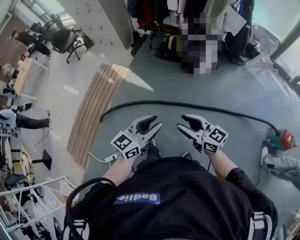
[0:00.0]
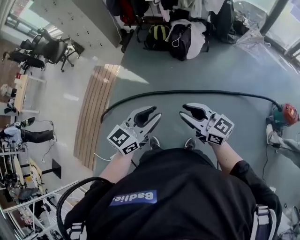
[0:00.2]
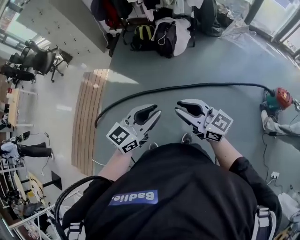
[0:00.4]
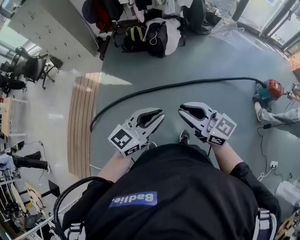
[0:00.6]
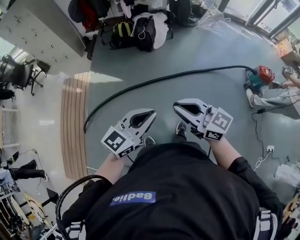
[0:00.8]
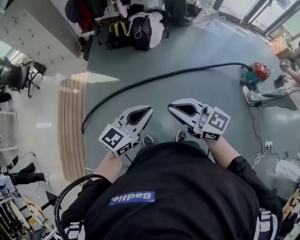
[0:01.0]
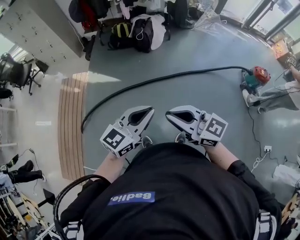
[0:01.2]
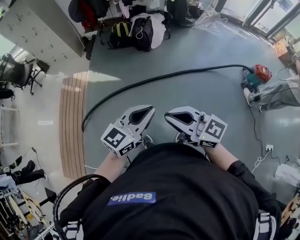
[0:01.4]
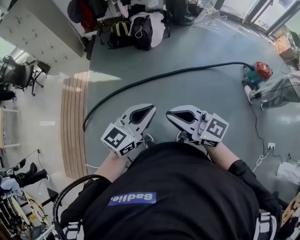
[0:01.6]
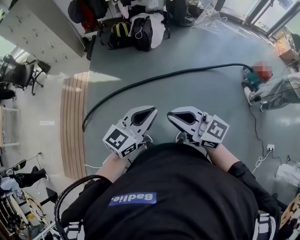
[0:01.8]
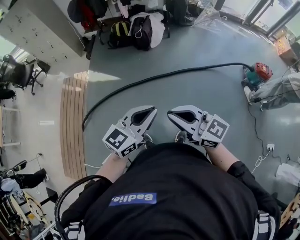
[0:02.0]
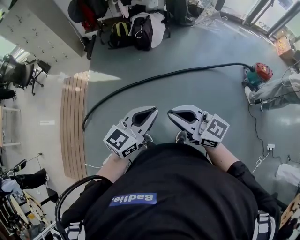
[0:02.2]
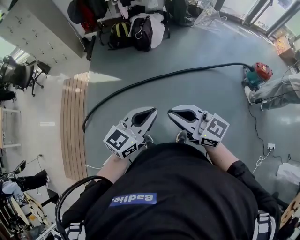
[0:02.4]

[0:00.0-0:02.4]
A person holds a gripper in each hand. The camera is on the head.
0.0 to 1.2 s: Both grippers move backward, roughly 20 cm. The right gripper closes. The left gripper rotates some 20 degrees, and closes.
1.2 to 2.4 s: The grippers make only small movements.

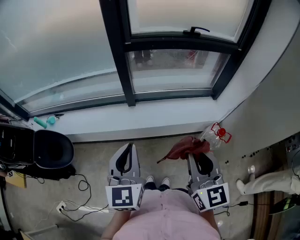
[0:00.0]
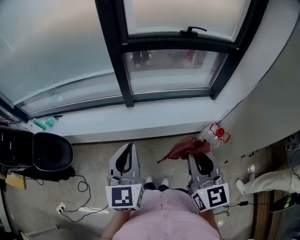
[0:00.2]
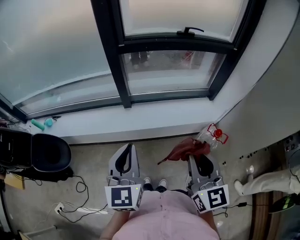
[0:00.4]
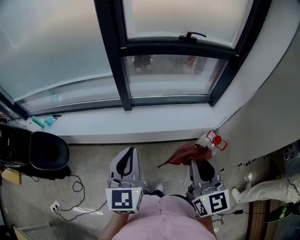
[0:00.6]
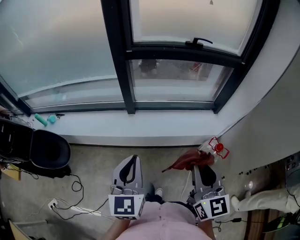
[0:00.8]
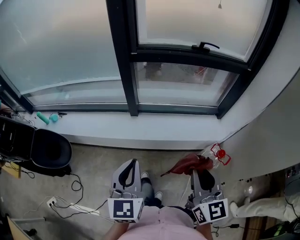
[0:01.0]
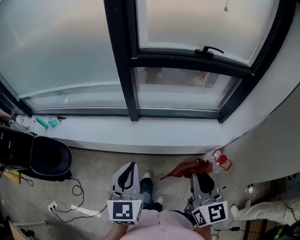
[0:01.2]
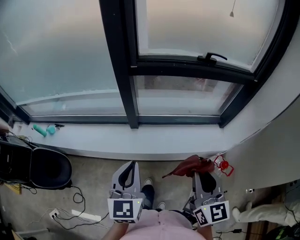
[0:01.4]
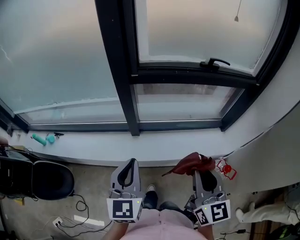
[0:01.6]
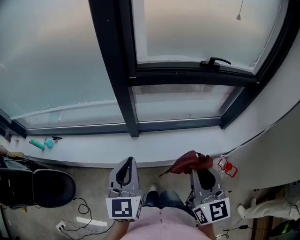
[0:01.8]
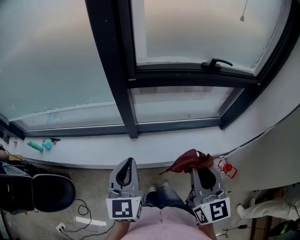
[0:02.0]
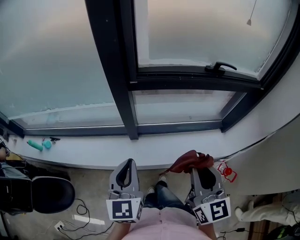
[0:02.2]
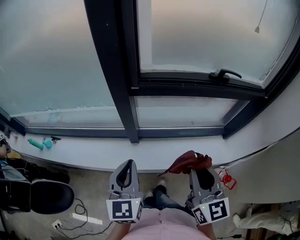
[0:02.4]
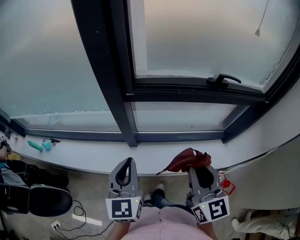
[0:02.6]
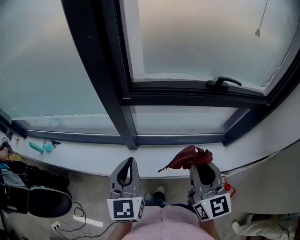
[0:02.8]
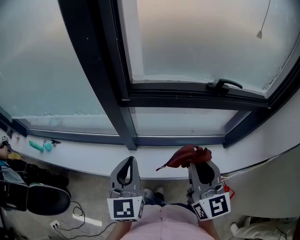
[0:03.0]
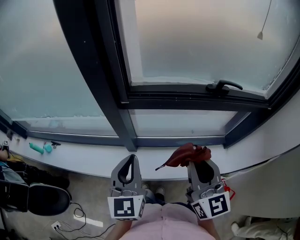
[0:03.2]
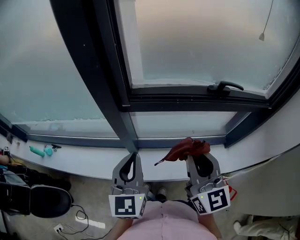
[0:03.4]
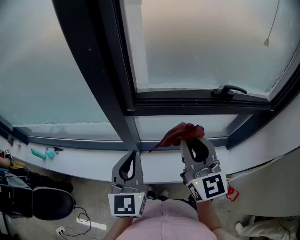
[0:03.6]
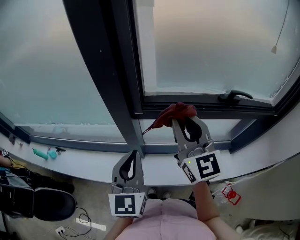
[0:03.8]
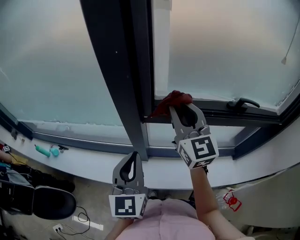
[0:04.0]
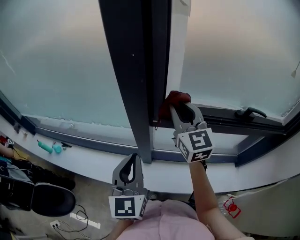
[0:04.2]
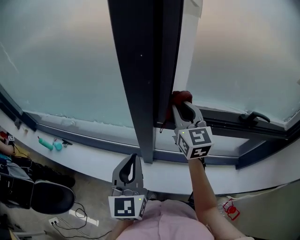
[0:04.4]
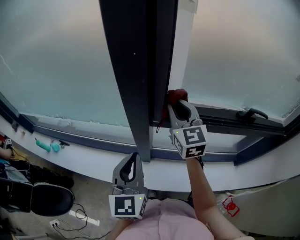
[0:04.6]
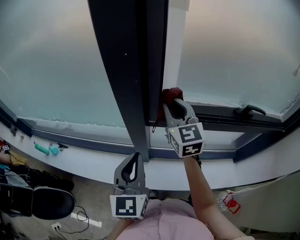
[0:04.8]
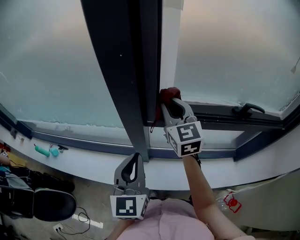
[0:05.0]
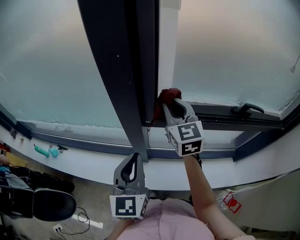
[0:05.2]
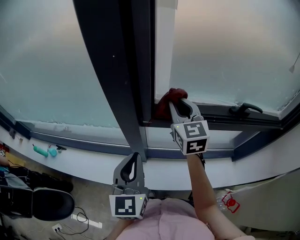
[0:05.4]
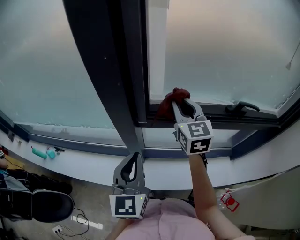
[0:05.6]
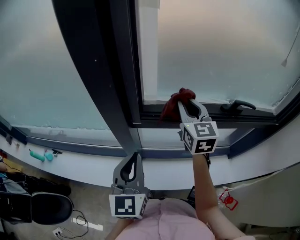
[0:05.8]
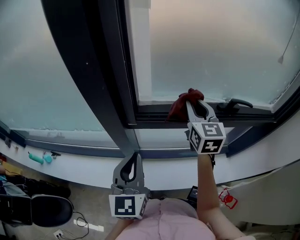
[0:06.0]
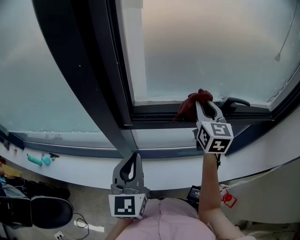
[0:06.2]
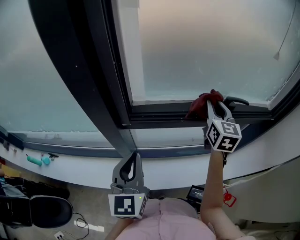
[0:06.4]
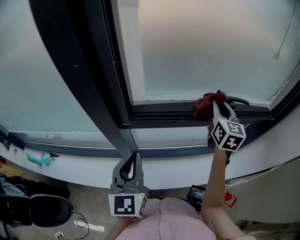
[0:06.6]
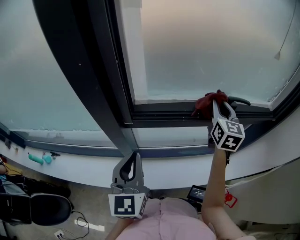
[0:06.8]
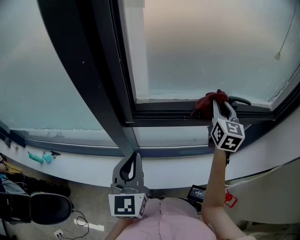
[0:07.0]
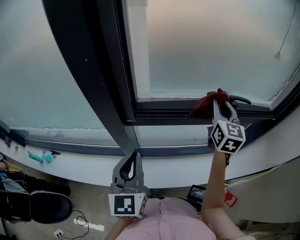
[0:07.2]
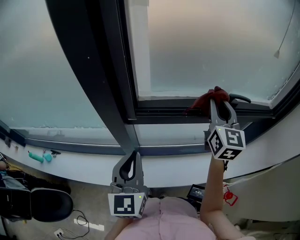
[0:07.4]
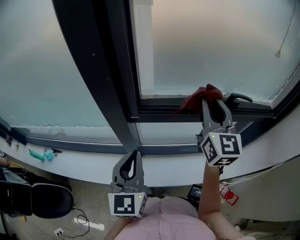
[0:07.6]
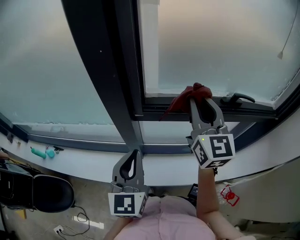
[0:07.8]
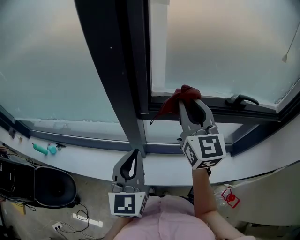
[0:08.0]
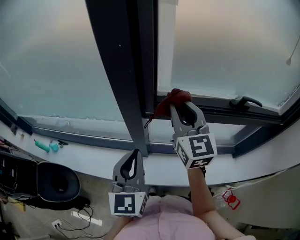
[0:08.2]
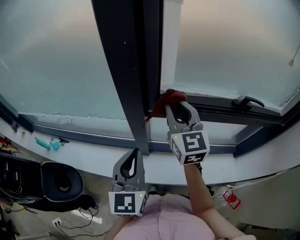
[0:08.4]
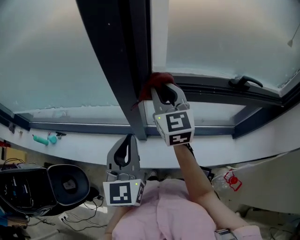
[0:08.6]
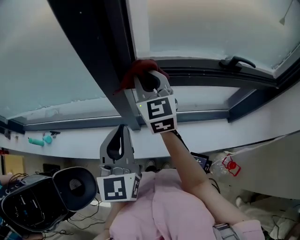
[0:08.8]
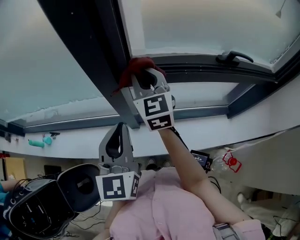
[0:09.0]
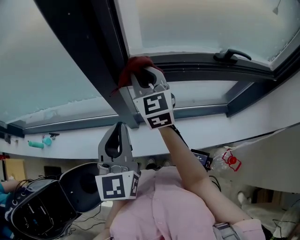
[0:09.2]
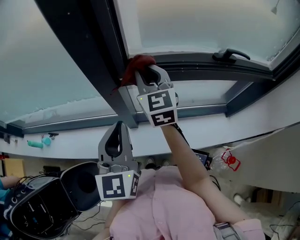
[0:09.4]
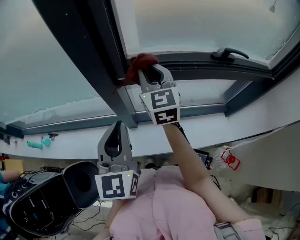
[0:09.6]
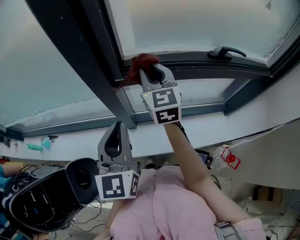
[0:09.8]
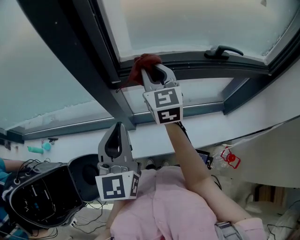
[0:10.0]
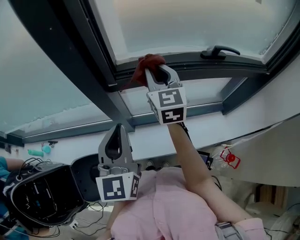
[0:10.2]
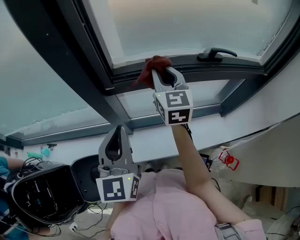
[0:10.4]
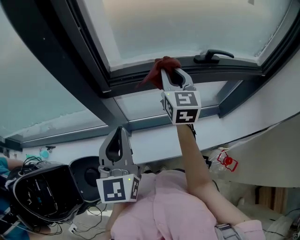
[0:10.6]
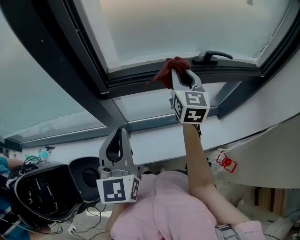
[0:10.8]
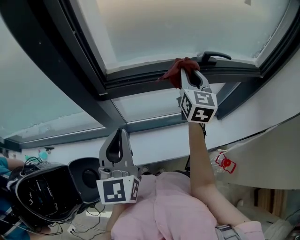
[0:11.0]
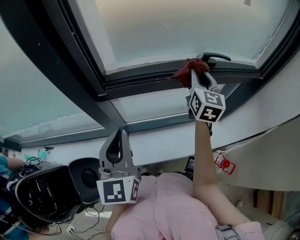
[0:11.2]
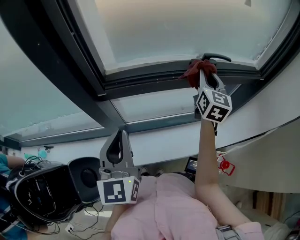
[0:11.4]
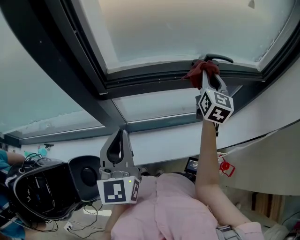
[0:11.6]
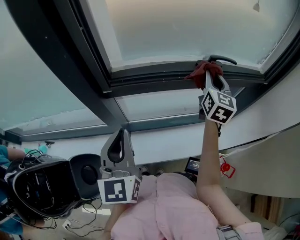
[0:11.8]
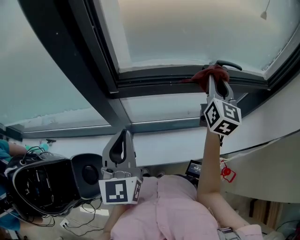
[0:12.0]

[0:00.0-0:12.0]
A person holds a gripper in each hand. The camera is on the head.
0.0 to 1.6 s: Both grippers move forward, about 20 cm.
1.6 to 3.0 s: The grippers both shift forward by about 20 cm.
3.0 to 4.4 s: The left gripper travels forward and to the left by about 15 cm, while the right gripper heads forward and to the left, covering approximately 35 cm.
4.4 to 6.0 s: The left gripper is displaced to the right by approximately 10 cm; the right gripper heads to the right, covering roughly 15 cm.
6.0 to 7.6 s: The right gripper goes some 10 cm backward and upward, and goes to the right and returns, some 15 cm each way.
7.6 to 9.0 s: The right gripper goes about 20 cm to the left and downward.
9.0 to 10.4 s: The right gripper travels to the right by some 15 cm.
10.4 to 12.0 s: The right gripper shifts approximately 20 cm to the right.

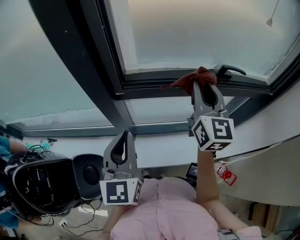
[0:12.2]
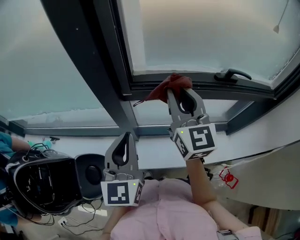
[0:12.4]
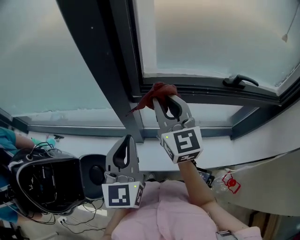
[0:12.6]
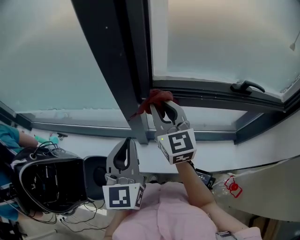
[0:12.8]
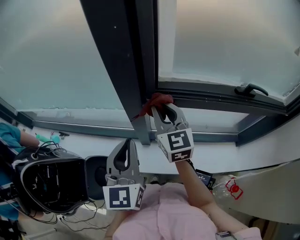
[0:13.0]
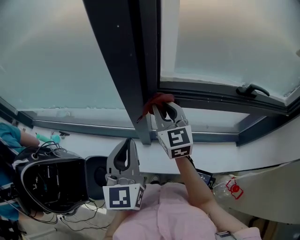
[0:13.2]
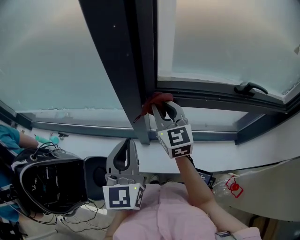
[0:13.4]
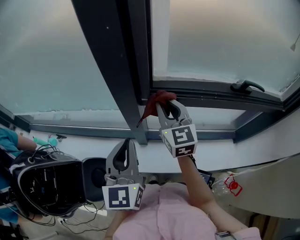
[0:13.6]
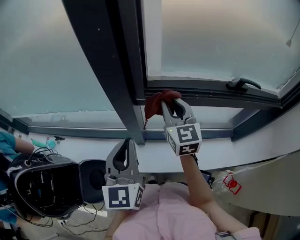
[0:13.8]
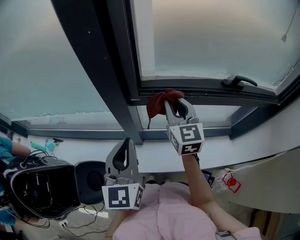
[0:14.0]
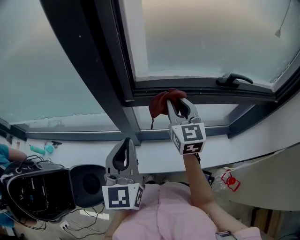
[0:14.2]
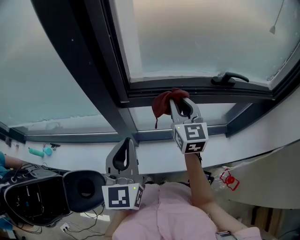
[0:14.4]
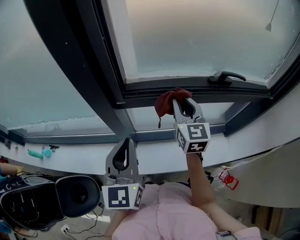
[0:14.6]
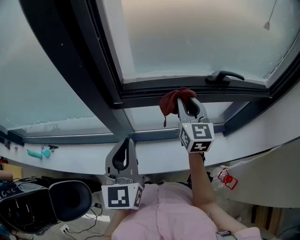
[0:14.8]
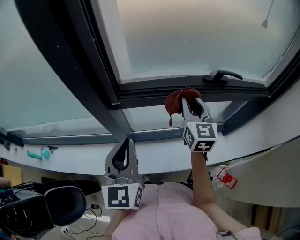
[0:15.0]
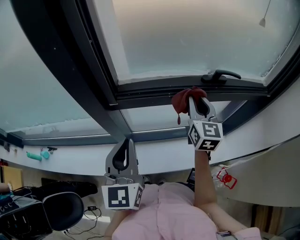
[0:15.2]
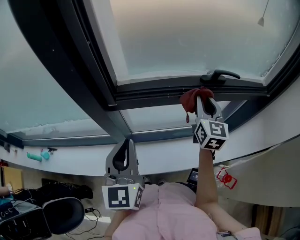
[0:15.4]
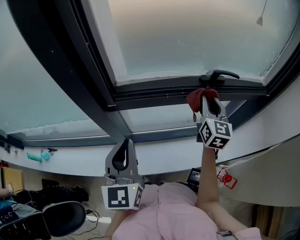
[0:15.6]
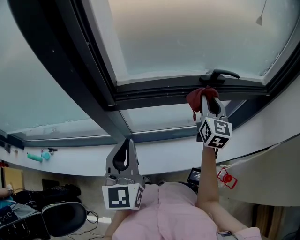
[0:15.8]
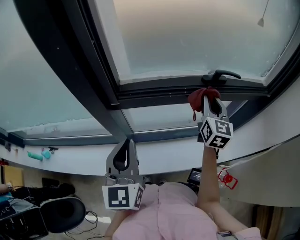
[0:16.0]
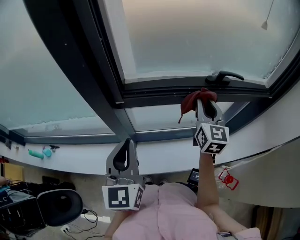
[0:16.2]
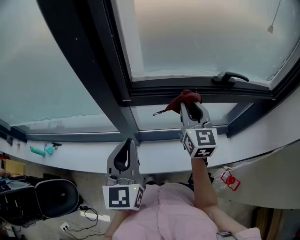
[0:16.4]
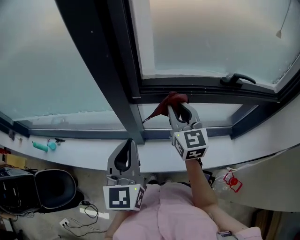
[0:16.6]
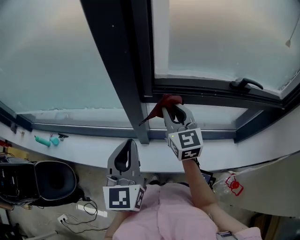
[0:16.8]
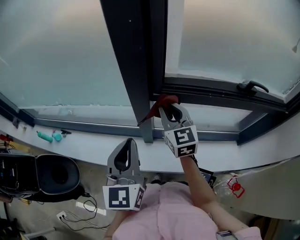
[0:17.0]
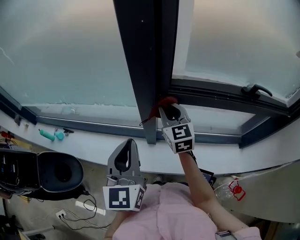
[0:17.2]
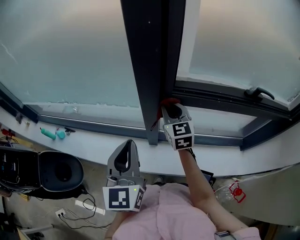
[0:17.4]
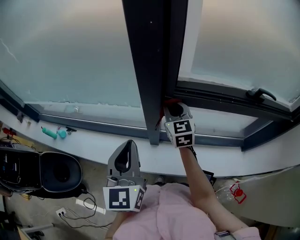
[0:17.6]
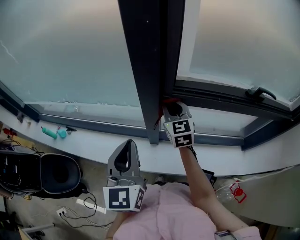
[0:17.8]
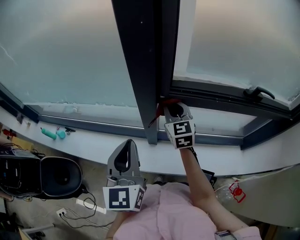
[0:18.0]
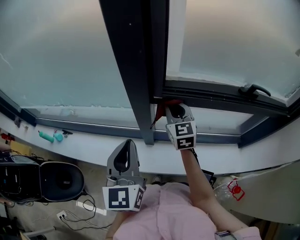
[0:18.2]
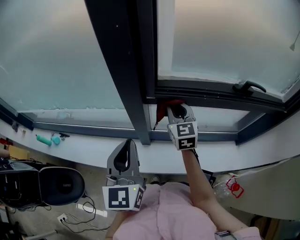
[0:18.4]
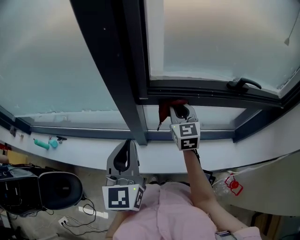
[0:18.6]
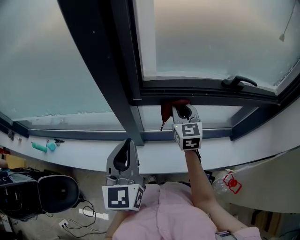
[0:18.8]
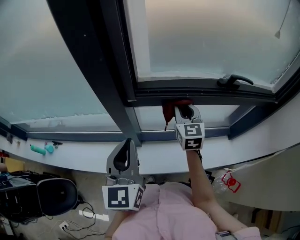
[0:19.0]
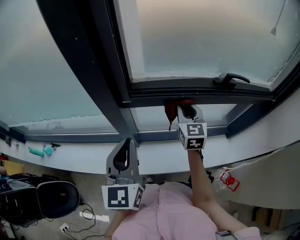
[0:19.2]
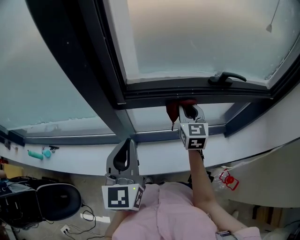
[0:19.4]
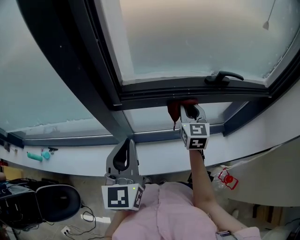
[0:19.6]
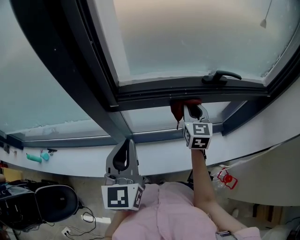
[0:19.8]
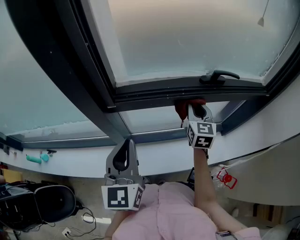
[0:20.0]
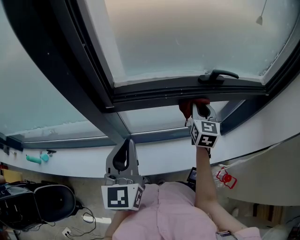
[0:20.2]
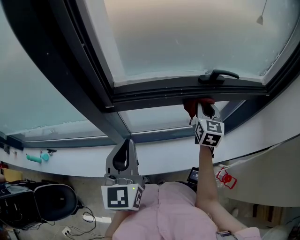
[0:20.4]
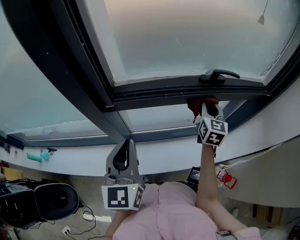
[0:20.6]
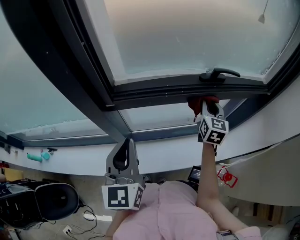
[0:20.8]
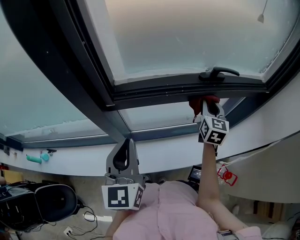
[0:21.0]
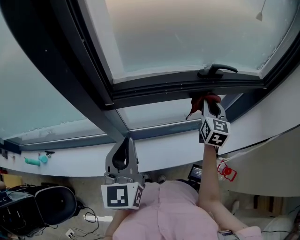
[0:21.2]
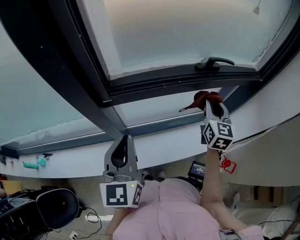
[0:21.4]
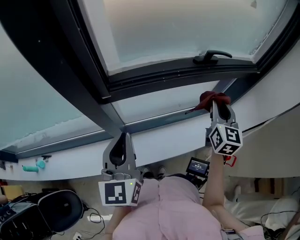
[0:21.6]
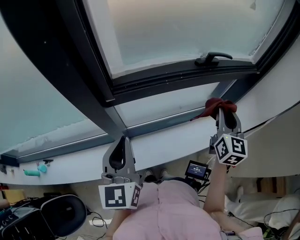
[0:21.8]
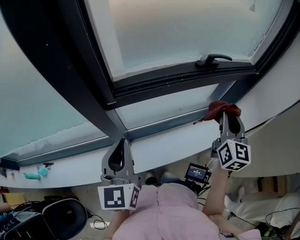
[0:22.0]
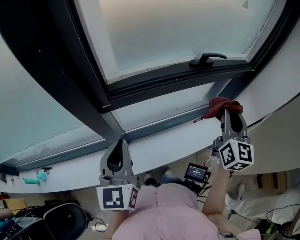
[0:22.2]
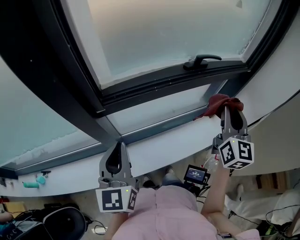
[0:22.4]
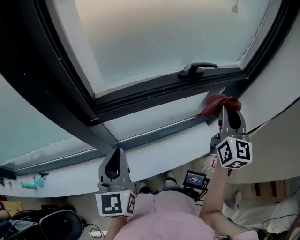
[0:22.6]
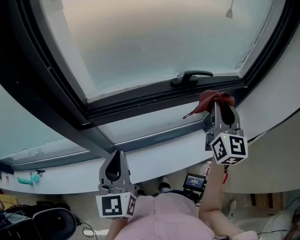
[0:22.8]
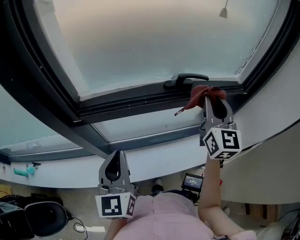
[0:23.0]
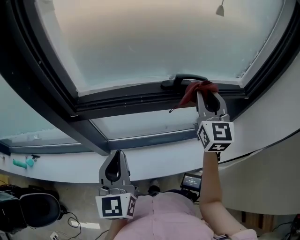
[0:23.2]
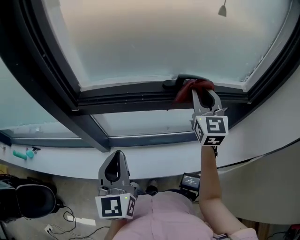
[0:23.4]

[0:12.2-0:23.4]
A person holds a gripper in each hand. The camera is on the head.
12.2 to 13.8 s: The right gripper travels to the left and downward by roughly 20 cm. Meanwhile the left gripper shifts approximately 5 cm to the left.
13.8 to 15.4 s: The left gripper moves to the right, some 10 cm, while the right gripper travels to the right by some 25 cm, and changes its angle by about 20 degrees.
15.4 to 17.0 s: The left gripper shifts some 15 cm to the left. Meanwhile the right gripper shifts roughly 30 cm to the left, and swivels some 30 degrees.
17.0 to 18.6 s: The right gripper shifts about 10 cm to the right.
18.6 to 20.2 s: The left gripper goes roughly 10 cm to the right, while the right gripper goes approximately 25 cm to the right, and swivels about 20 degrees.
20.2 to 21.8 s: The left gripper changes place by roughly 5 cm, while the right gripper moves backward and to the right, approximately 15 cm.
21.8 to 23.4 s: The left gripper heads to the right, covering approximately 15 cm. Meanwhile the right gripper travels forward and upward by approximately 20 cm, and swivels approximately 30 degrees.
